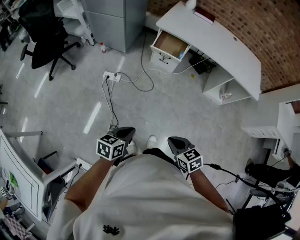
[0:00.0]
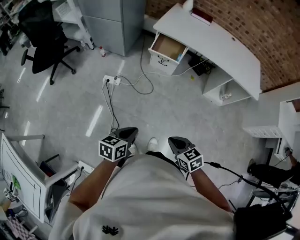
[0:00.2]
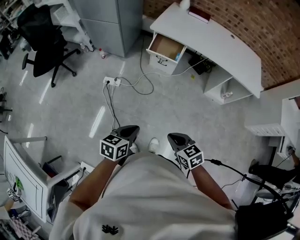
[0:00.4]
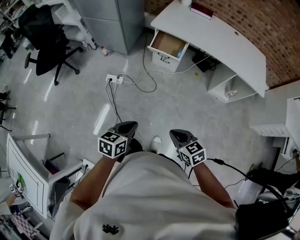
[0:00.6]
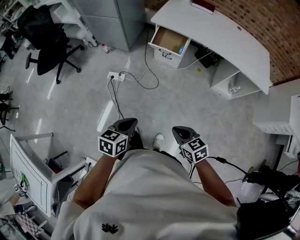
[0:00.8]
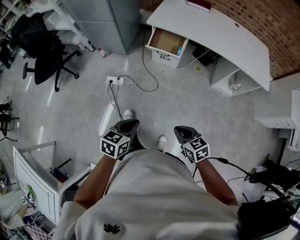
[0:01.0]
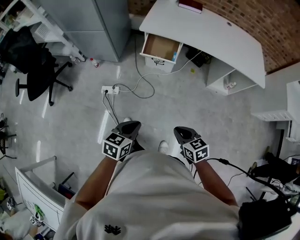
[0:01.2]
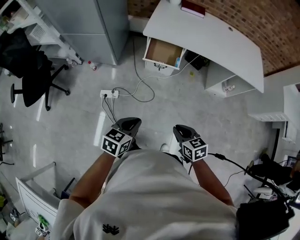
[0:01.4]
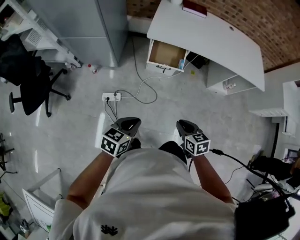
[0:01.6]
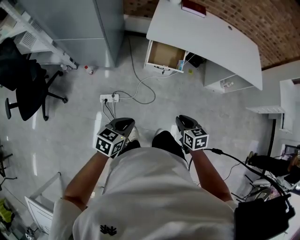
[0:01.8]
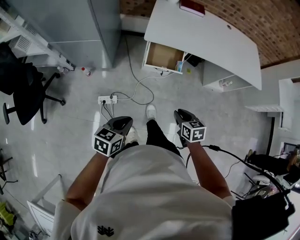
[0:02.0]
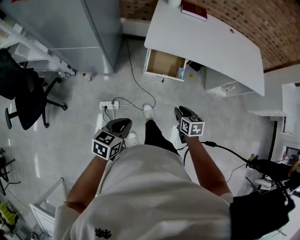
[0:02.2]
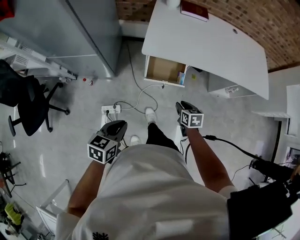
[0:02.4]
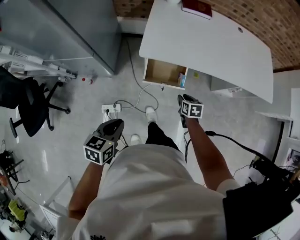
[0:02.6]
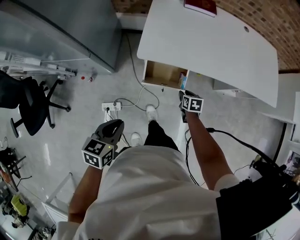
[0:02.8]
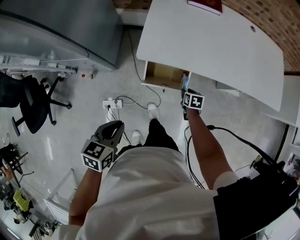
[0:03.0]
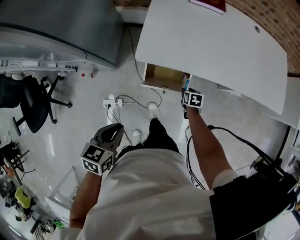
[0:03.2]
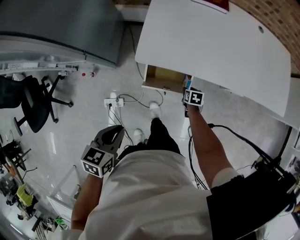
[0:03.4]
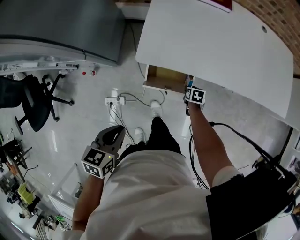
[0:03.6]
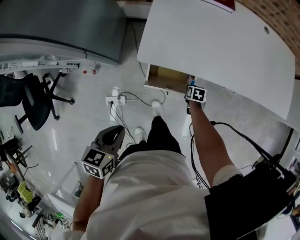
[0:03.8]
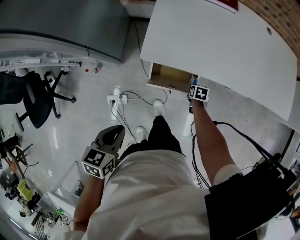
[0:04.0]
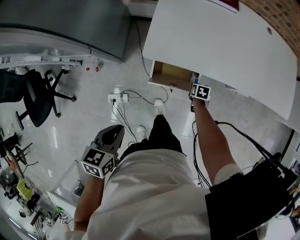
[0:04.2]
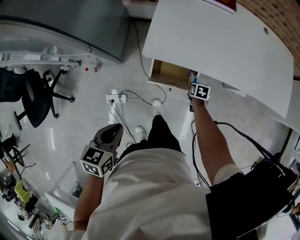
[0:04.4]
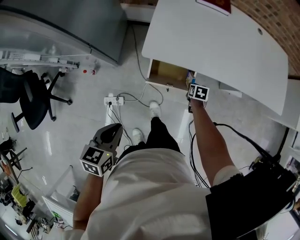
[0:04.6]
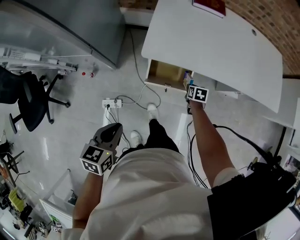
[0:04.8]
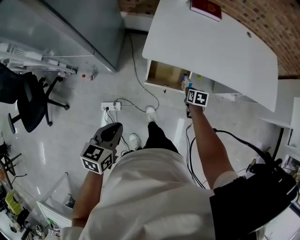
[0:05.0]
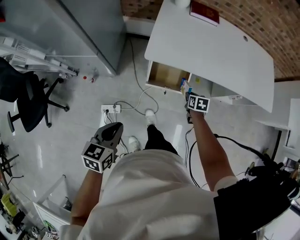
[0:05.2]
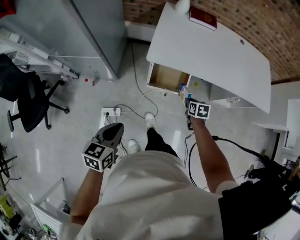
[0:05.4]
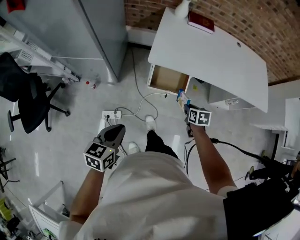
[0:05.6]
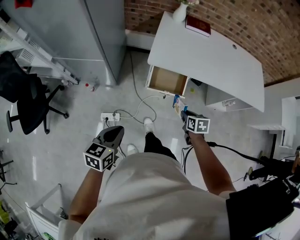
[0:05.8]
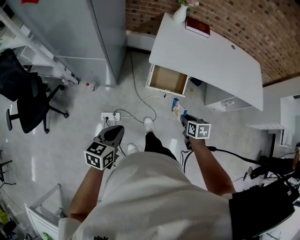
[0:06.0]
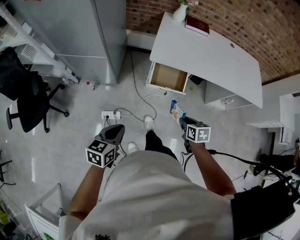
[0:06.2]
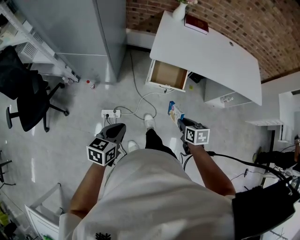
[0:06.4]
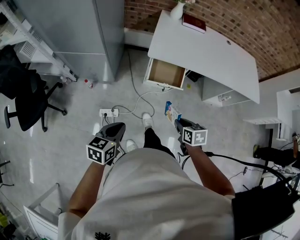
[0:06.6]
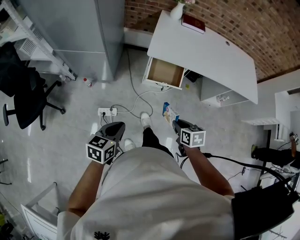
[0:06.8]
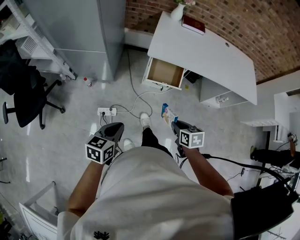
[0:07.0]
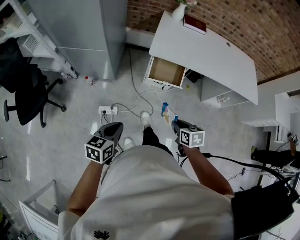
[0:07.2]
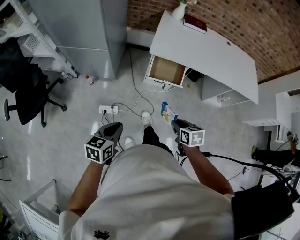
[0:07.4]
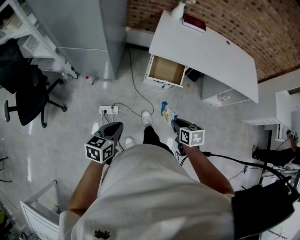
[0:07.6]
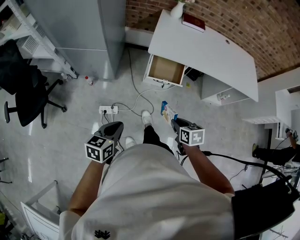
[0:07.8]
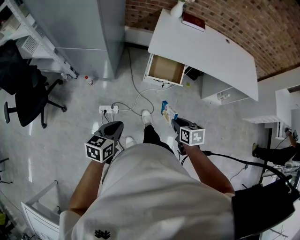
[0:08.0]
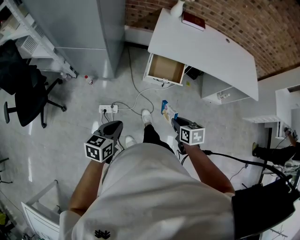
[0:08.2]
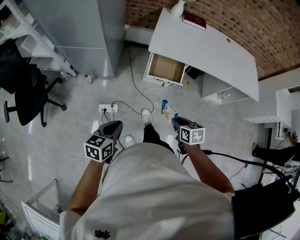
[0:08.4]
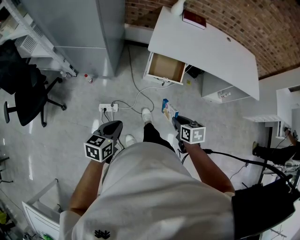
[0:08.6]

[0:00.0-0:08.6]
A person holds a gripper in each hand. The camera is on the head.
0:00.0 to 0:01.4: The two grippers go some 25 cm forward.
0:01.4 to 0:02.8: The pair of grippers is taken forward, roughly 50 cm. The right gripper swivels approximately 30 degrees, and opens up.
0:02.8 to 0:04.4: The right gripper is displaced downward and forward by roughly 15 cm.
0:04.4 to 0:05.8: The left gripper goes approximately 20 cm backward. Meanwhile the right gripper goes about 40 cm backward and upward.
0:05.8 to 0:07.2: The right gripper goes approximately 20 cm backward. The left gripper goes some 10 cm backward.
0:07.2 to 0:08.6: Neither gripper changes place.

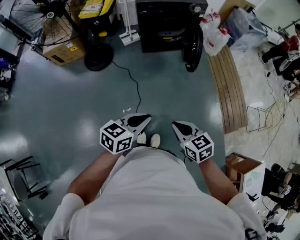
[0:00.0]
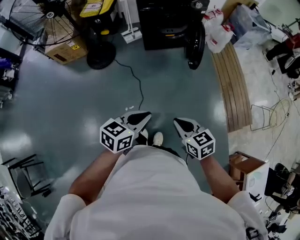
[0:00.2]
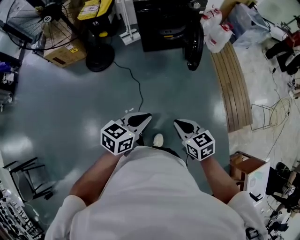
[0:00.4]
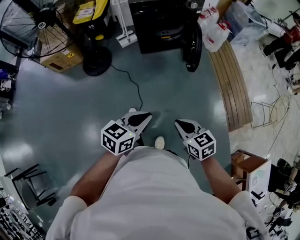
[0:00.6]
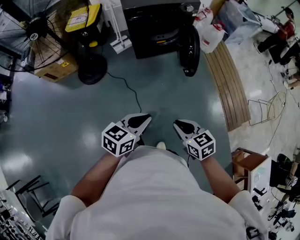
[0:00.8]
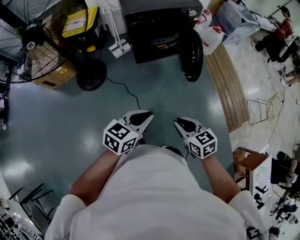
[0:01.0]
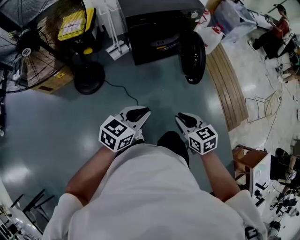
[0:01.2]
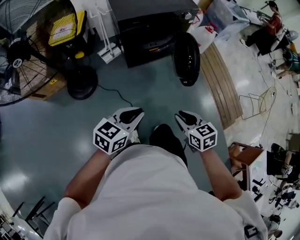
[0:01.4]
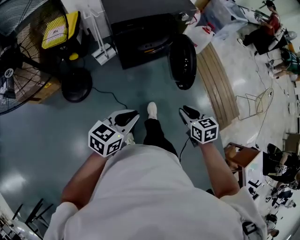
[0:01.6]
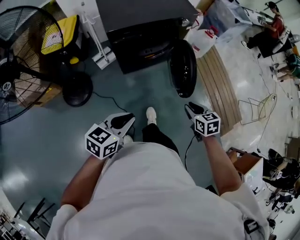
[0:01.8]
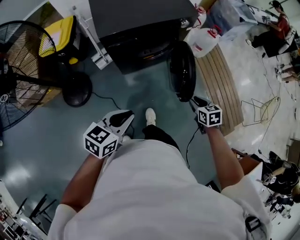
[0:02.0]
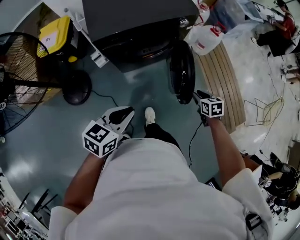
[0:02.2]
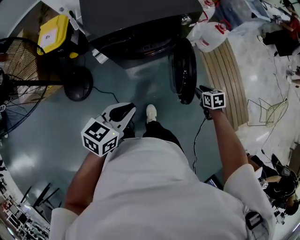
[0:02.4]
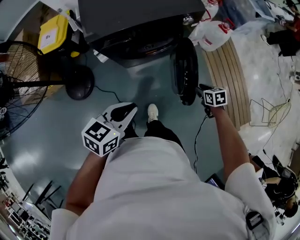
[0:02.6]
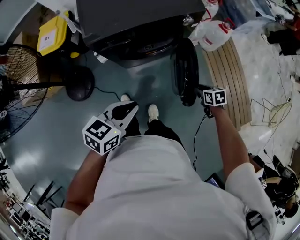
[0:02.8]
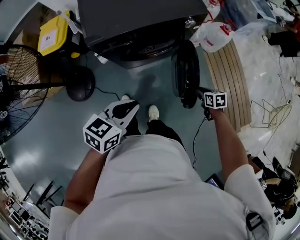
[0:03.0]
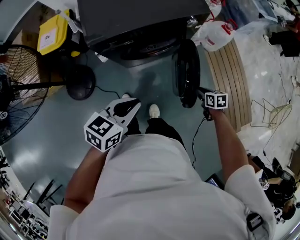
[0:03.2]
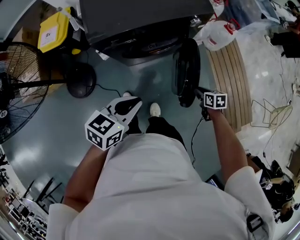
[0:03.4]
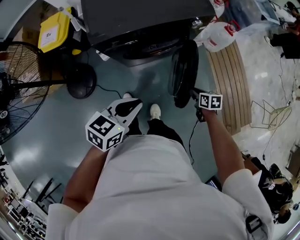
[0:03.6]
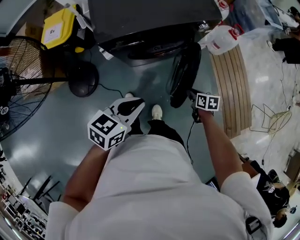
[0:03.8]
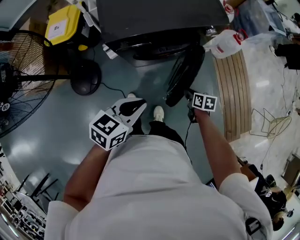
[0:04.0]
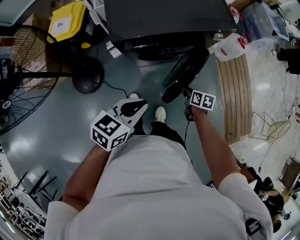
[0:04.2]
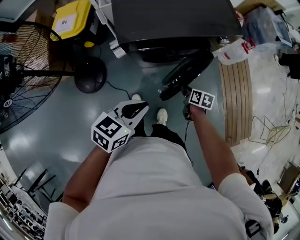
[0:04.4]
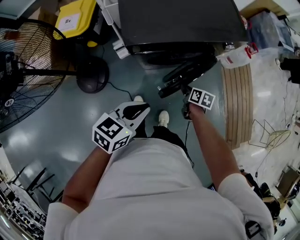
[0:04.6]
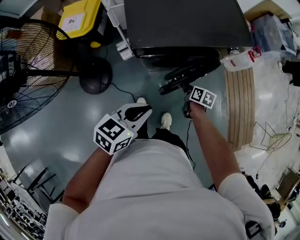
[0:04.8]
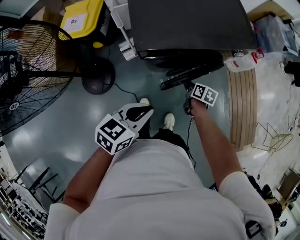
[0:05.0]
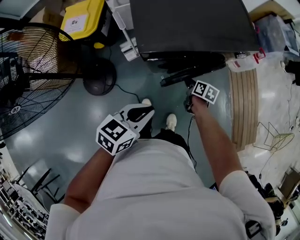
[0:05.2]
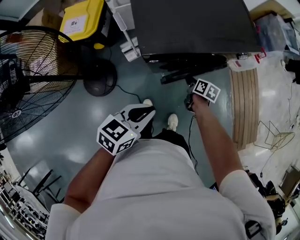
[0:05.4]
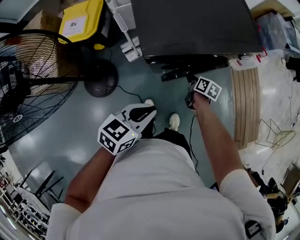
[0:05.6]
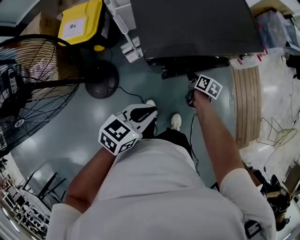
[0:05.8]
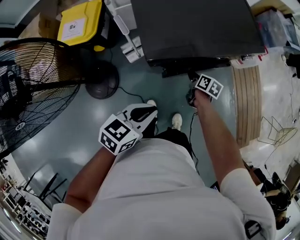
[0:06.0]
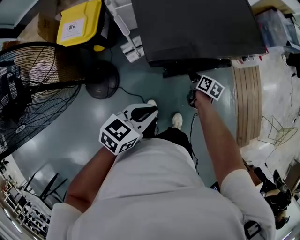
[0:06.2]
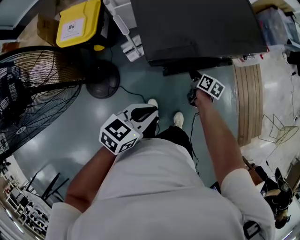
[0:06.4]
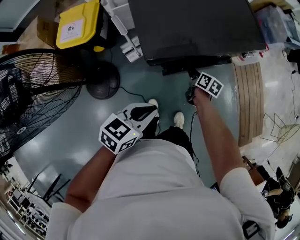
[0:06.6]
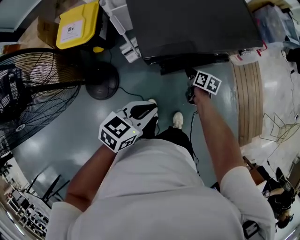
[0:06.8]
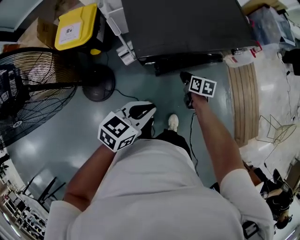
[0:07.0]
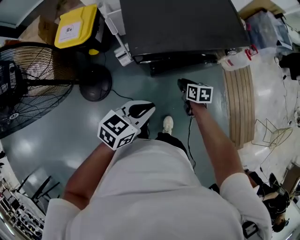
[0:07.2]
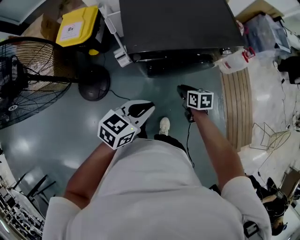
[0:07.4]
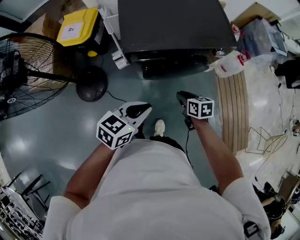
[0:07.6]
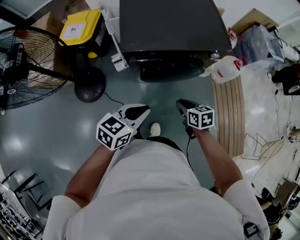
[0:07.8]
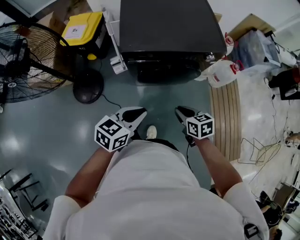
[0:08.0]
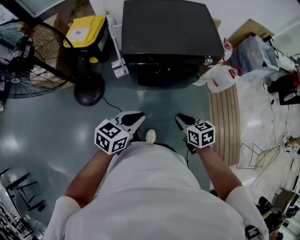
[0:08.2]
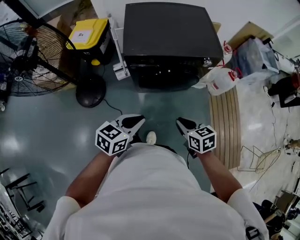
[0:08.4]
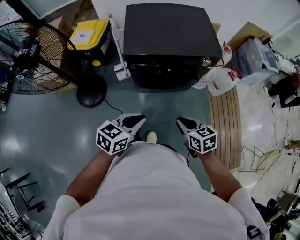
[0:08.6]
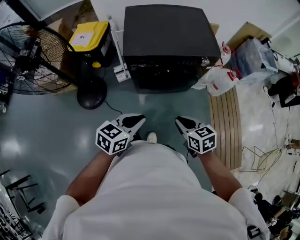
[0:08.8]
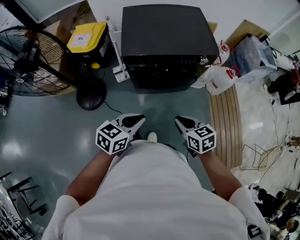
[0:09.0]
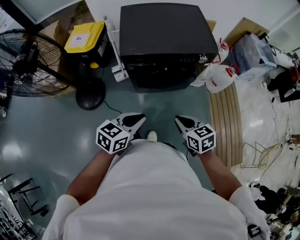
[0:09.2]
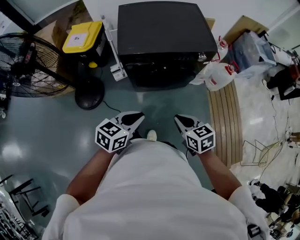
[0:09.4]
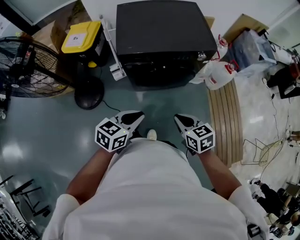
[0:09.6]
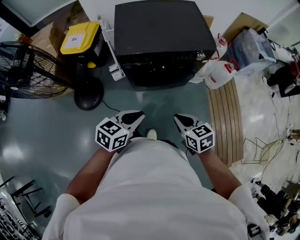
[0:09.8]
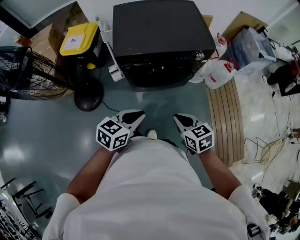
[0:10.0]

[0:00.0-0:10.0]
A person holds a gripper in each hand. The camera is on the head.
0:00.0 to 0:01.4: The left gripper travels forward and to the left by approximately 30 cm, while the right gripper heads forward, covering about 25 cm, and opens up.
0:01.4 to 0:02.8: The left gripper shifts roughly 30 cm forward. Meanwhile the right gripper moves forward, downward and to the right, approximately 50 cm, and swivels some 20 degrees.
0:02.8 to 0:04.2: The right gripper moves to the left, some 20 cm, and turns by some 20 degrees. The left gripper is displaced to the left by about 5 cm.
0:04.2 to 0:05.8: The left gripper heads to the left, covering roughly 10 cm; the right gripper is displaced to the left and forward by roughly 20 cm.
0:05.8 to 0:07.2: The left gripper is displaced to the right by some 5 cm, while the right gripper shifts roughly 5 cm backward, and rotates some 30 degrees.
0:07.2 to 0:08.6: The left gripper heads backward and to the right, covering approximately 15 cm, while the right gripper is displaced backward, upward and to the right by about 30 cm, and swivels about 30 degrees.
0:08.6 to 0:10.0: The grippers stay close to where they were, moving slightly.

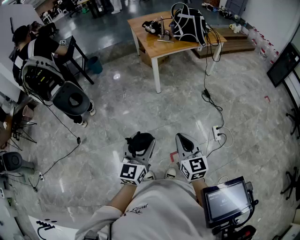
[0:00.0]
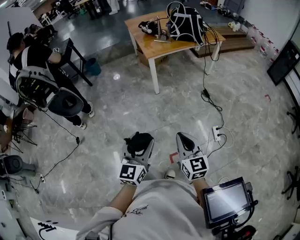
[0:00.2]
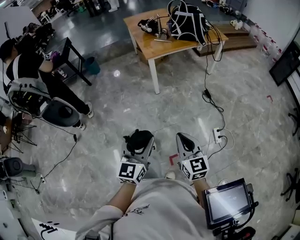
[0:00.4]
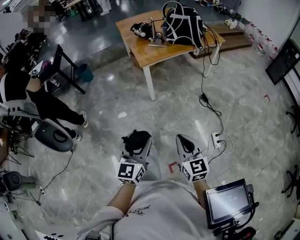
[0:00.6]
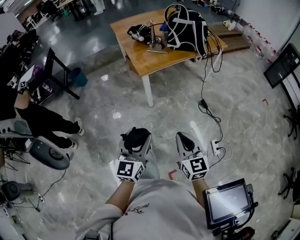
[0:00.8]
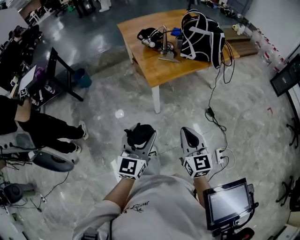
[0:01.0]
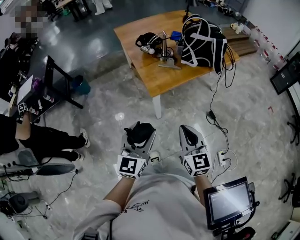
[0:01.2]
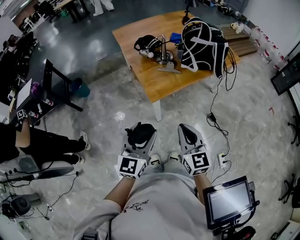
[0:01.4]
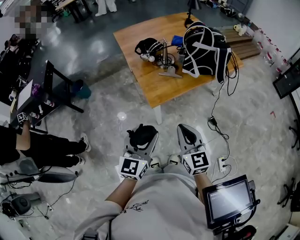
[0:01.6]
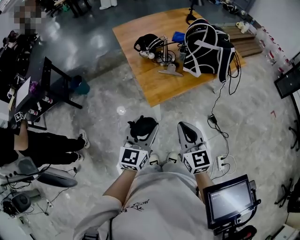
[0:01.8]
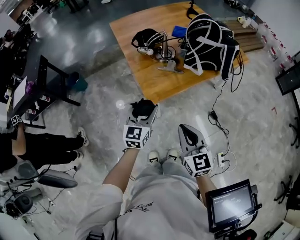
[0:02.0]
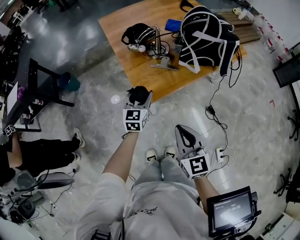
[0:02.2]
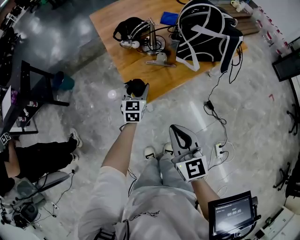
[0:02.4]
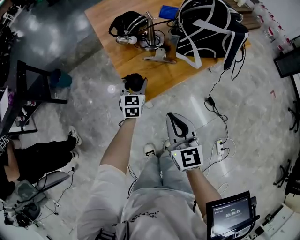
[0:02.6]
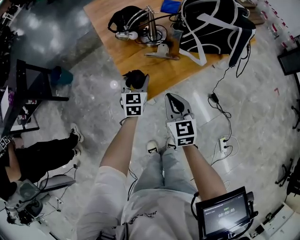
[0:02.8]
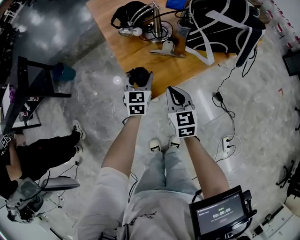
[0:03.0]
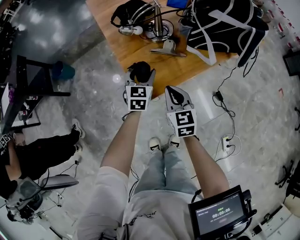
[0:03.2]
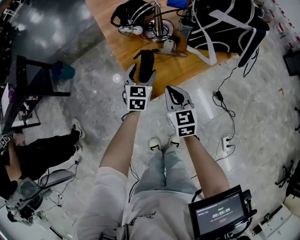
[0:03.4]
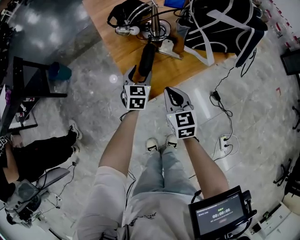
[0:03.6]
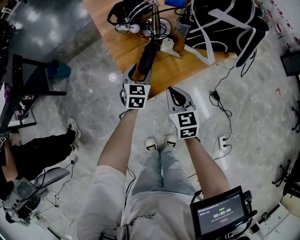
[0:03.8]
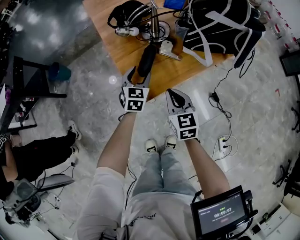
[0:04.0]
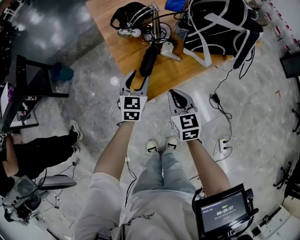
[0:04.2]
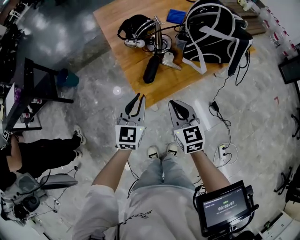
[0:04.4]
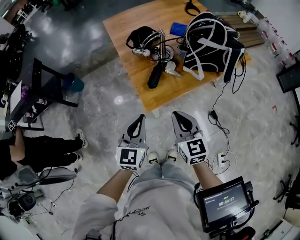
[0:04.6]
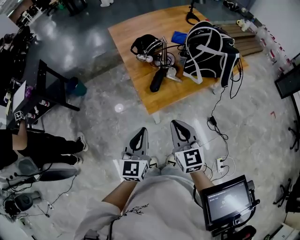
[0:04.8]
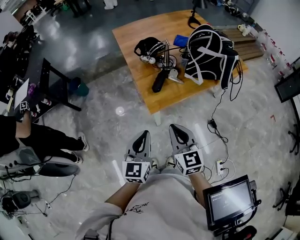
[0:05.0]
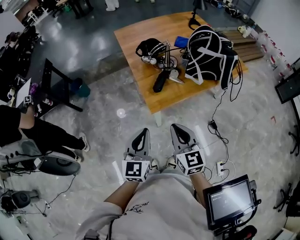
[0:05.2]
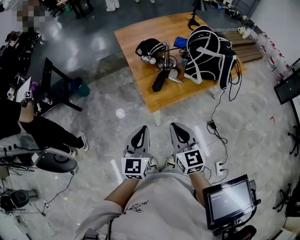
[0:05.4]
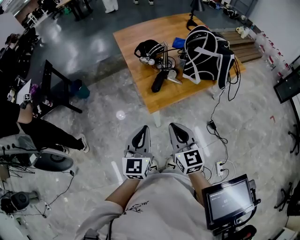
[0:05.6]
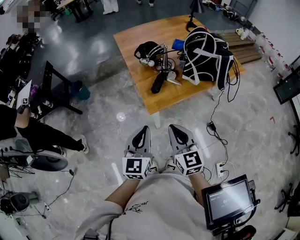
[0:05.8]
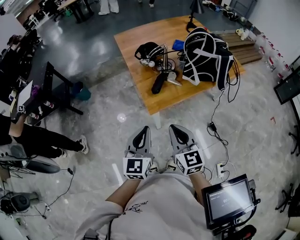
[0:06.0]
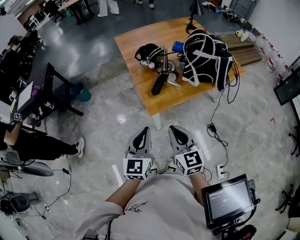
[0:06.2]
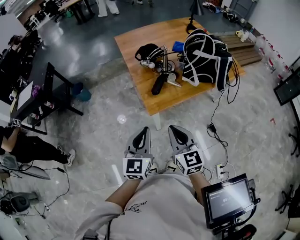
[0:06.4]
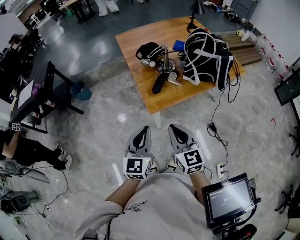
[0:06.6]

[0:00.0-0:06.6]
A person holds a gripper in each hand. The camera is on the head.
0:00.0 to 0:01.6: The two grippers travel together, forward, some 60 cm.
0:01.6 to 0:03.2: The two grippers go about 40 cm forward and downward. The left gripper turns by roughly 20 degrees.
0:03.2 to 0:05.0: The right gripper travels upward and backward by about 25 cm, while the left gripper is displaced backward and upward by about 40 cm, and closes its fingers.
0:05.0 to 0:06.6: The grippers make only small movements.
